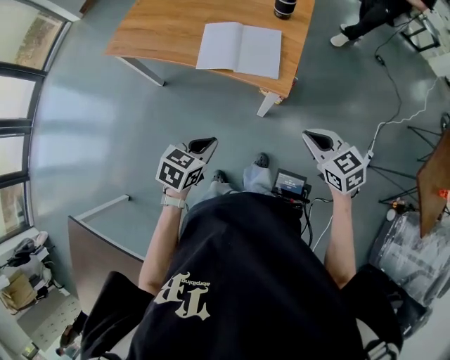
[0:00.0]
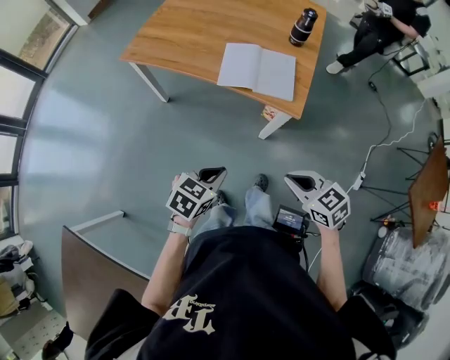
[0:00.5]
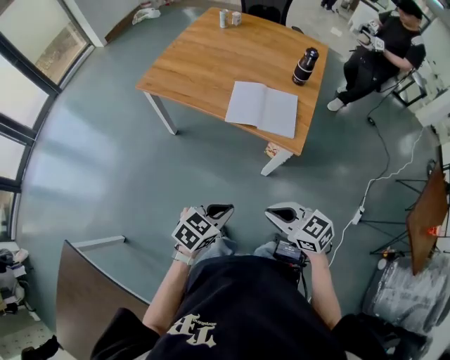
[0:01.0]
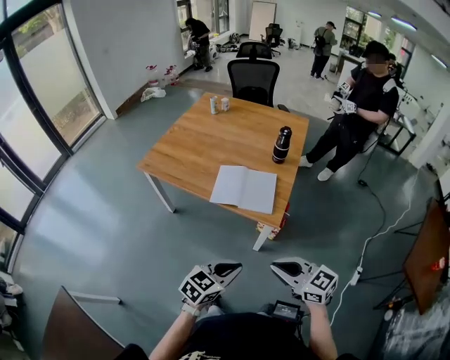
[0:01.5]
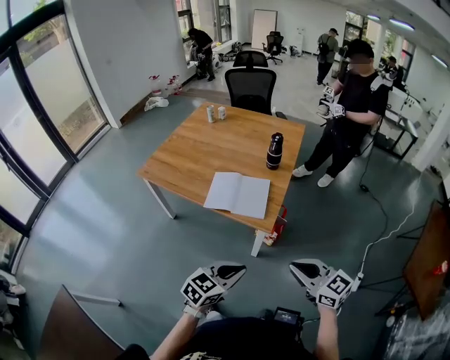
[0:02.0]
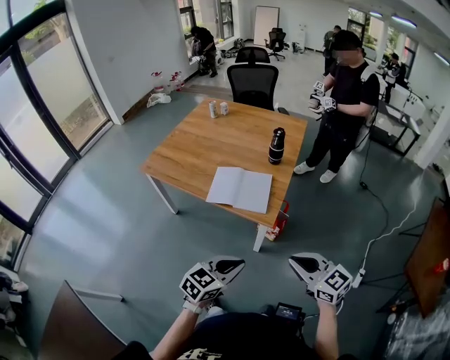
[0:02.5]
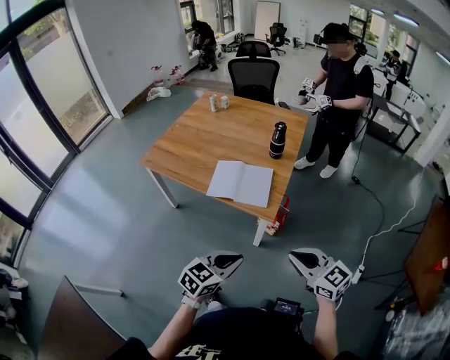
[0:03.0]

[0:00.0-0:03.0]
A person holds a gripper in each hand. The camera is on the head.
0.0 to 1.5 s: The left gripper moves upward, backward and to the right, some 15 cm, and turns by about 20 degrees, while the right gripper moves upward, to the left and backward, some 20 cm, and swivels roughly 30 degrees.
1.5 to 3.0 s: The right gripper heads to the right, covering roughly 10 cm. Meanwhile the left gripper travels to the right by some 5 cm.

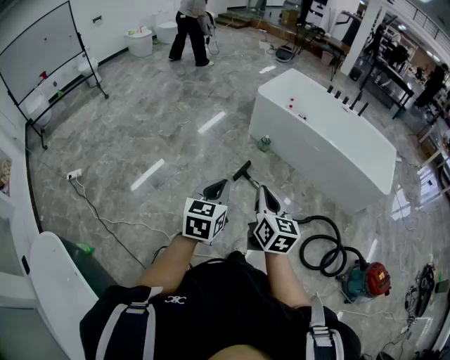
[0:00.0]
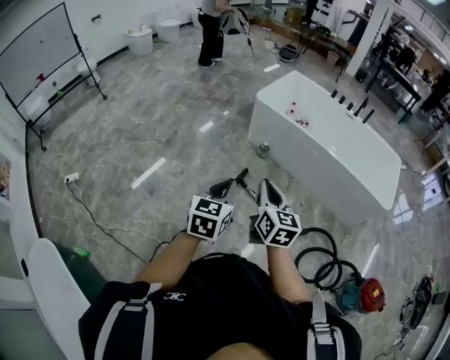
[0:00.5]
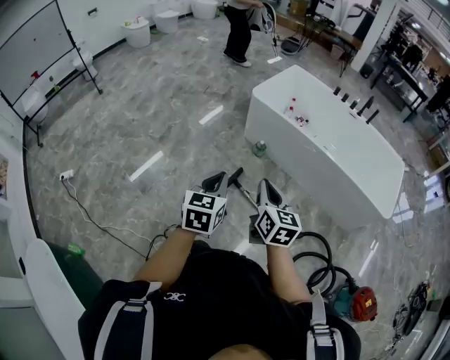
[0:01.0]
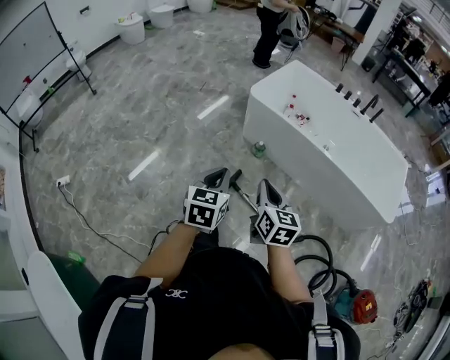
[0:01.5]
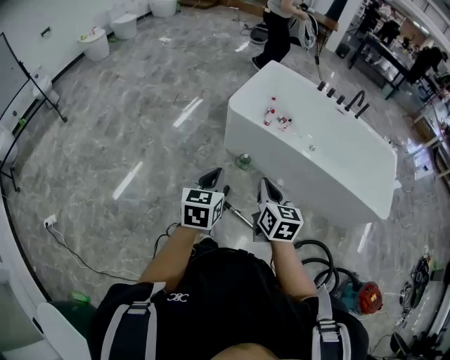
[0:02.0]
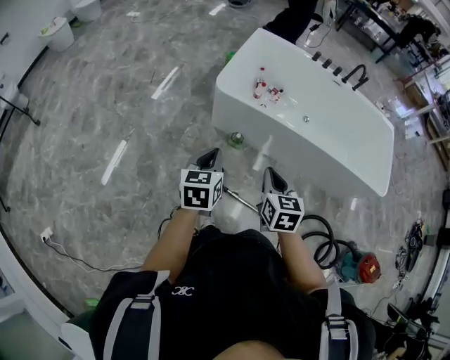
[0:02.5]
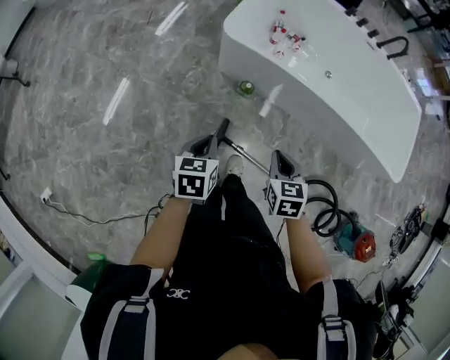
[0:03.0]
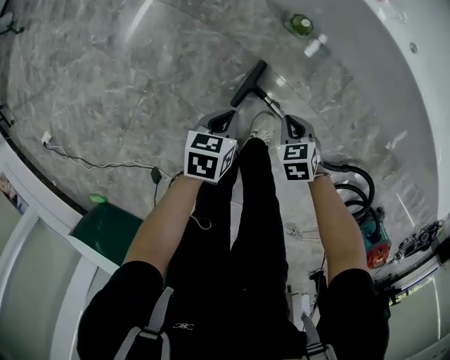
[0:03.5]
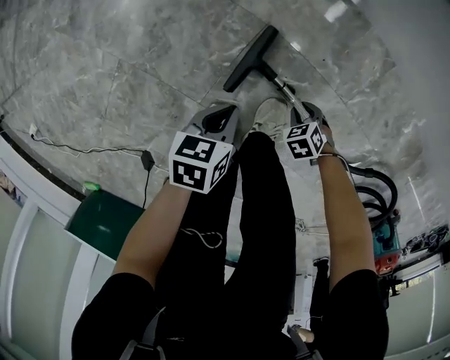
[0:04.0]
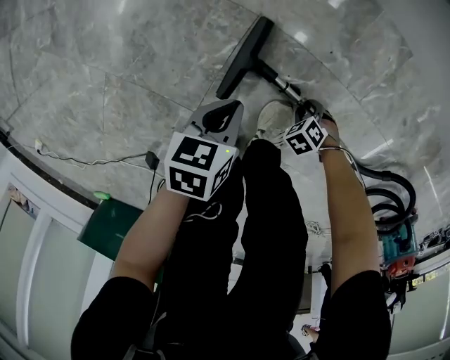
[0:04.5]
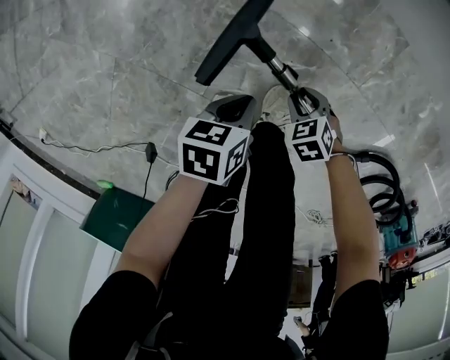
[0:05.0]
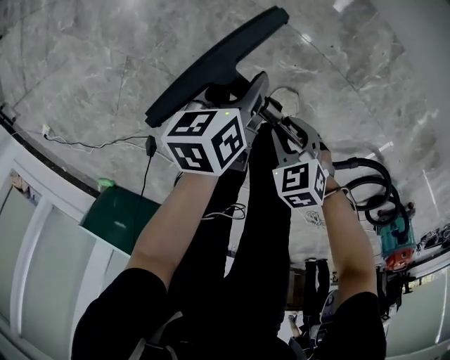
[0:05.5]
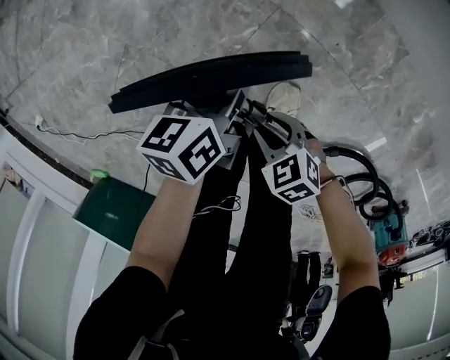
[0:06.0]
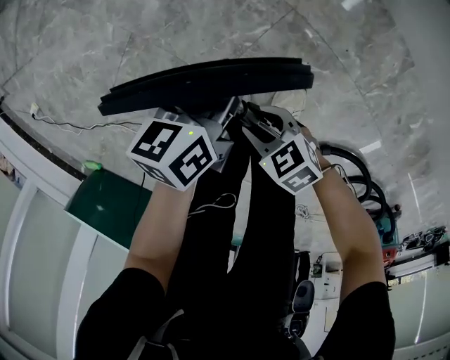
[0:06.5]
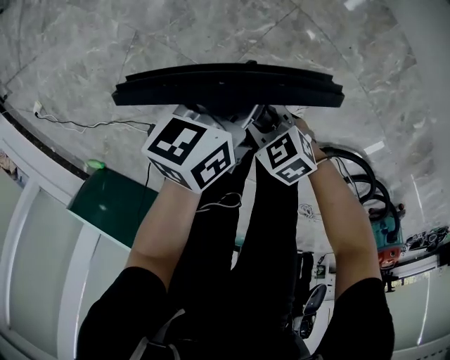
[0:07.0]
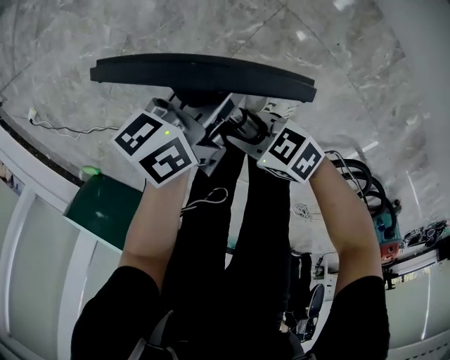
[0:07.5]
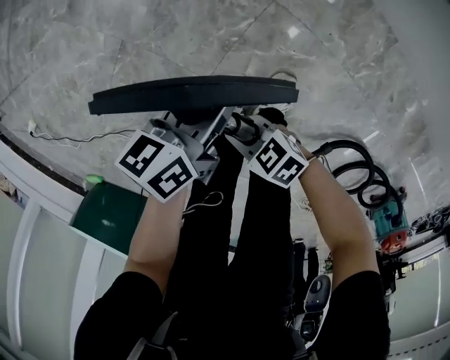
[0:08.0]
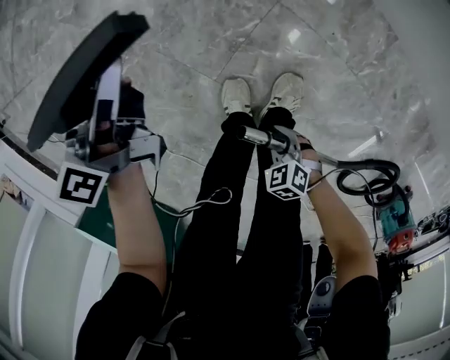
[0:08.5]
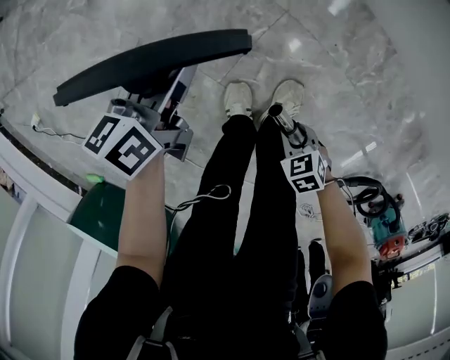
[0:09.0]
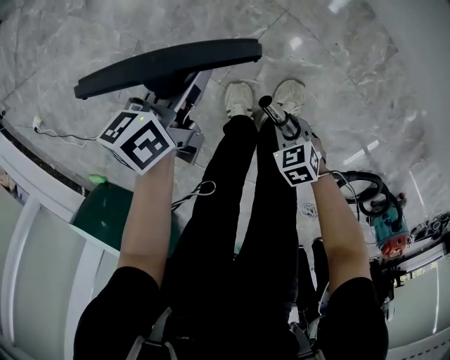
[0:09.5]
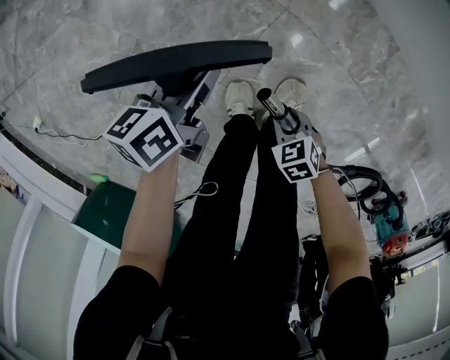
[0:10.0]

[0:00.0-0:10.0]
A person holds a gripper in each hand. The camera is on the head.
0.0 to 2.0 s: The pair of grippers is taken forward, approximately 50 cm.
2.0 to 4.0 s: The two grippers go about 80 cm downward. The left gripper tips its fingers downward by roughly 40 degrees; the right gripper angles its fingers downward, by approximately 60 degrees, and opens.
4.0 to 6.0 s: The left gripper moves approximately 10 cm, turns by some 30 degrees, and opens. The right gripper is displaced upward by about 20 cm, and turns by roughly 30 degrees.
6.0 to 8.0 s: The left gripper travels upward by approximately 5 cm. The right gripper moves about 10 cm, changes its angle by approximately 20 degrees, and closes its fingers.
8.0 to 10.0 s: The right gripper ends up about 10 cm from where it was, and tilts its fingers approximately 30 degrees downward; the left gripper travels upward and back again, about 10 cm each way.

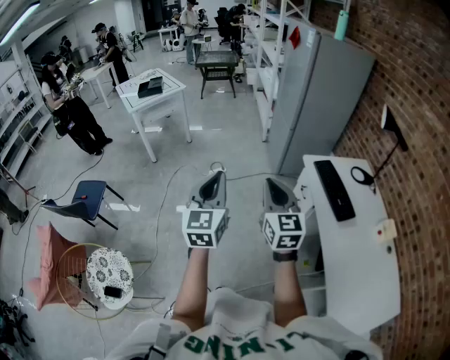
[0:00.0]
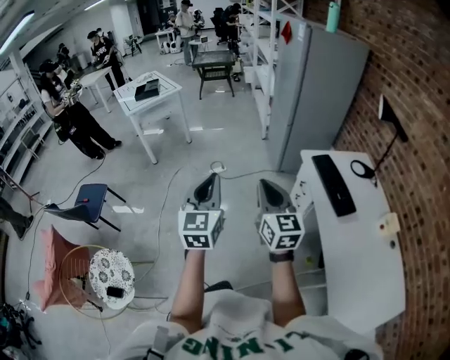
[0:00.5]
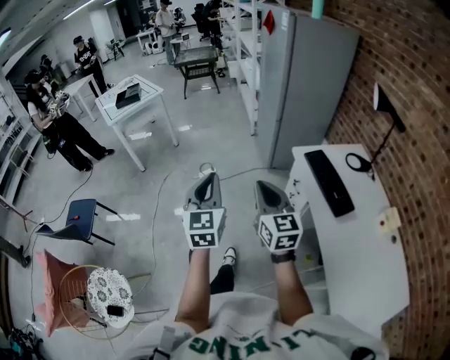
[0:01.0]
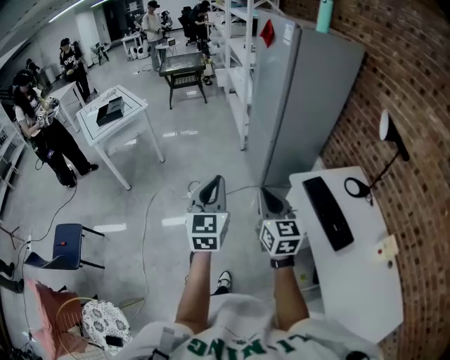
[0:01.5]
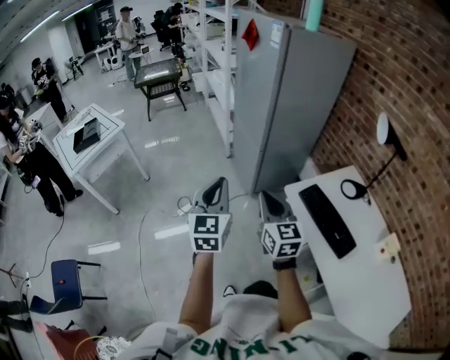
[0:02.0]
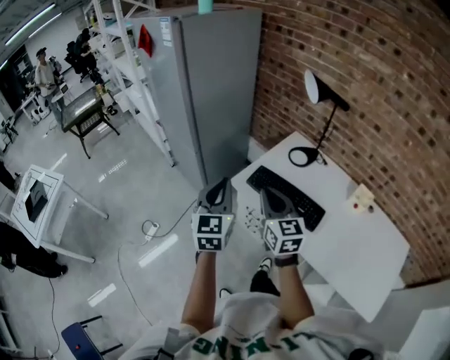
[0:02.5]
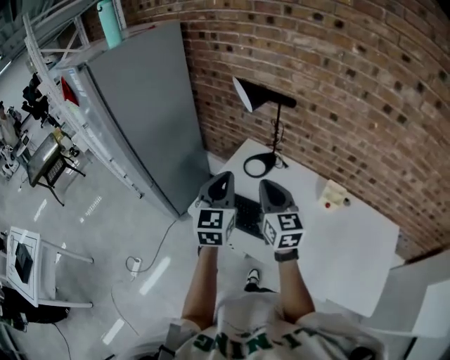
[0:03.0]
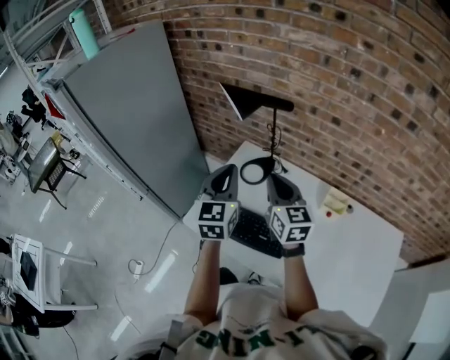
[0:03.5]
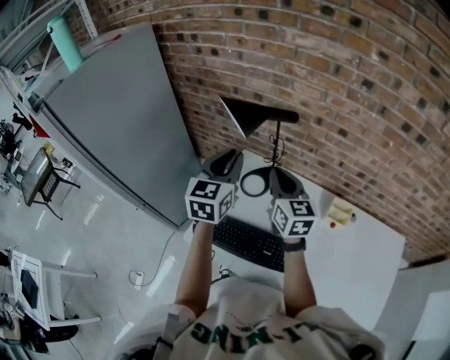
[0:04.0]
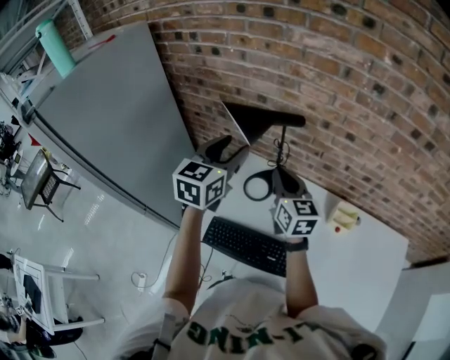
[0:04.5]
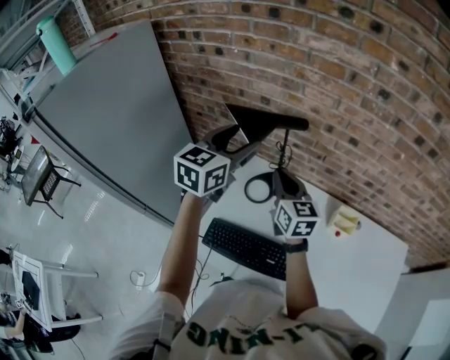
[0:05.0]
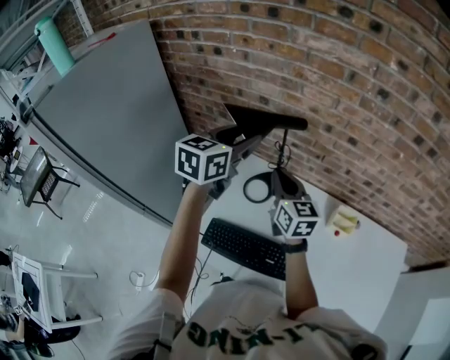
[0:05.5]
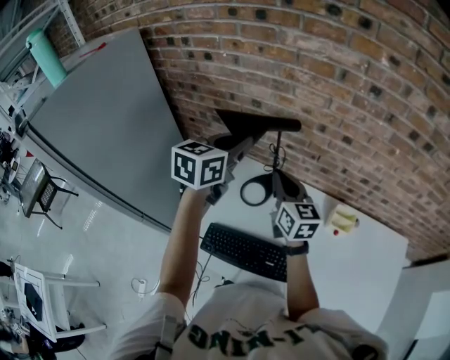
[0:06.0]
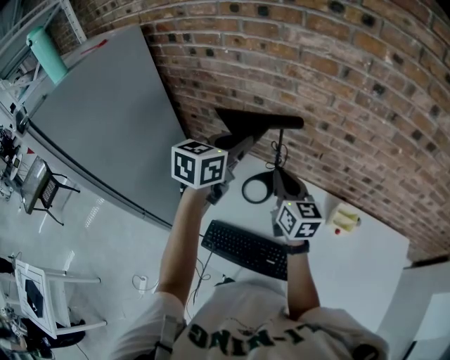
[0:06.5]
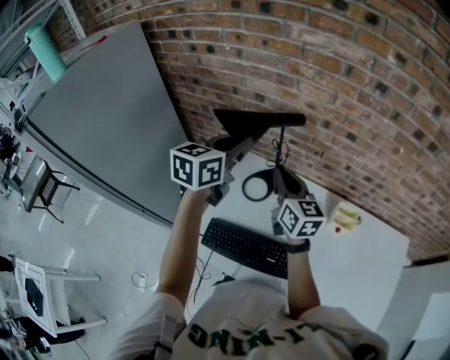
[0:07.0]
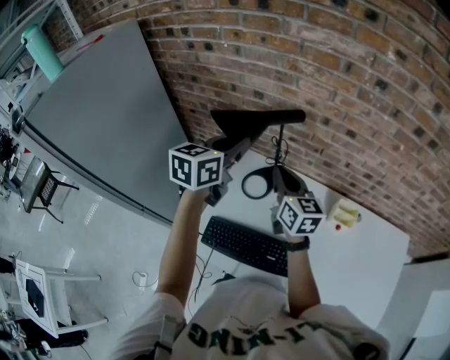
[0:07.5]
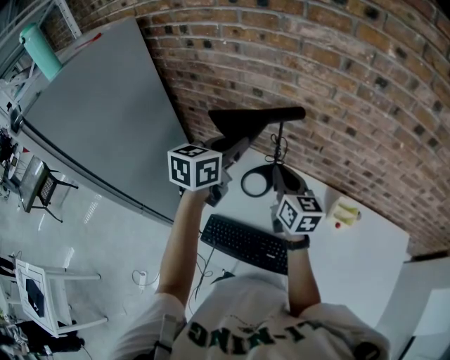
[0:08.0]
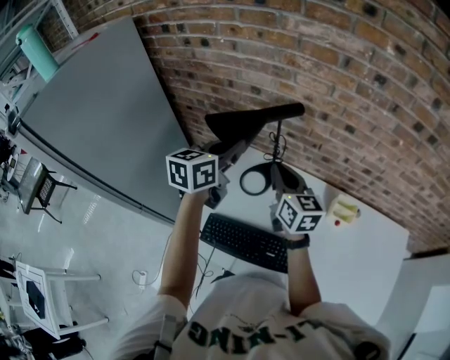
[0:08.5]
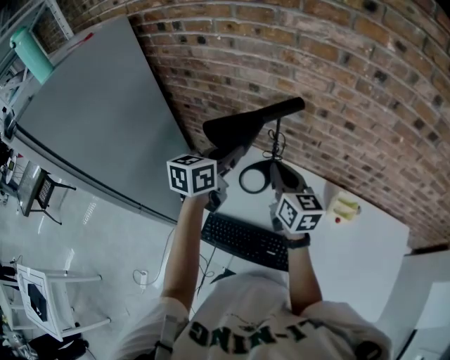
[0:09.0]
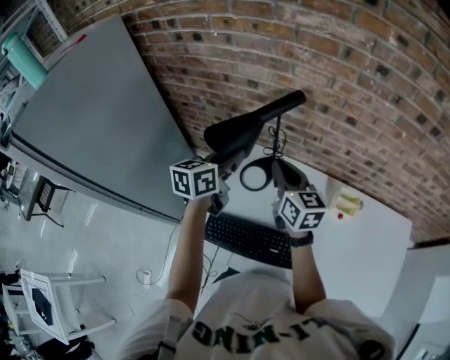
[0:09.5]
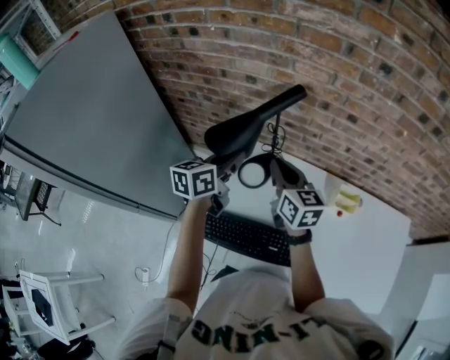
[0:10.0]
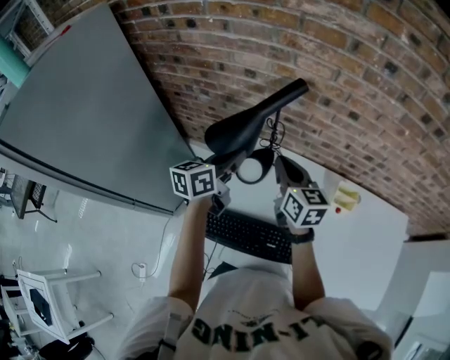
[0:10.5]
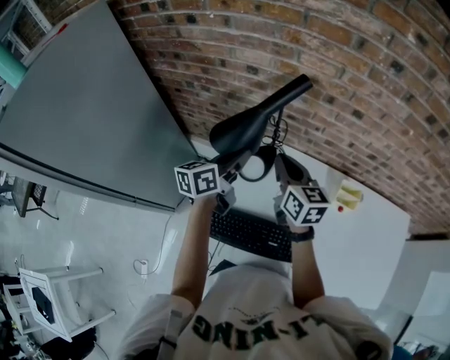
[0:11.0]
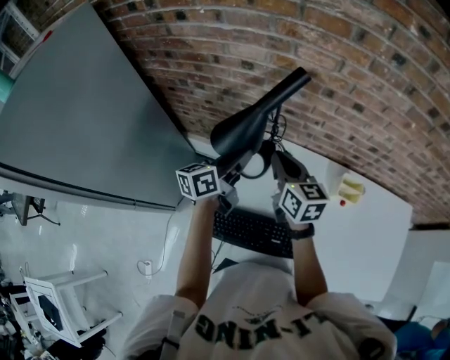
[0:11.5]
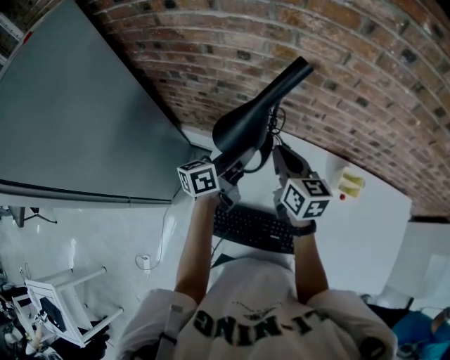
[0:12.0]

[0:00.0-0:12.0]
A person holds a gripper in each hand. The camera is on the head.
0.0 to 2.0 s: The grippers both shift forward by approximately 35 cm.
2.0 to 4.0 s: Both grippers are carried some 60 cm. The right gripper turns by roughly 40 degrees. The left gripper rotates some 50 degrees.
4.0 to 6.0 s: The right gripper heads forward, covering some 5 cm; the left gripper heads forward, covering about 10 cm, turns by some 20 degrees, and opens, then closes again.
6.0 to 8.0 s: There are only small adjustments of the grippers.
8.0 to 10.0 s: The left gripper is displaced downward by approximately 10 cm.
10.0 to 12.0 s: The left gripper heads downward, covering about 5 cm, and changes its angle by about 20 degrees; the right gripper changes place by approximately 5 cm.

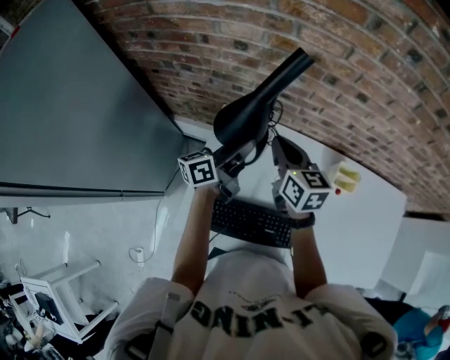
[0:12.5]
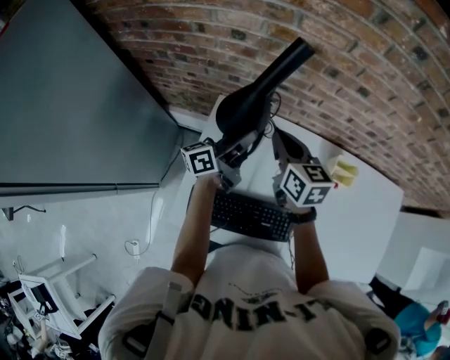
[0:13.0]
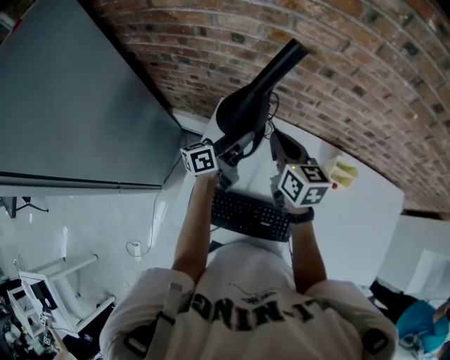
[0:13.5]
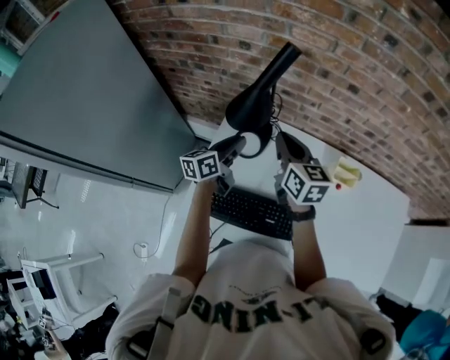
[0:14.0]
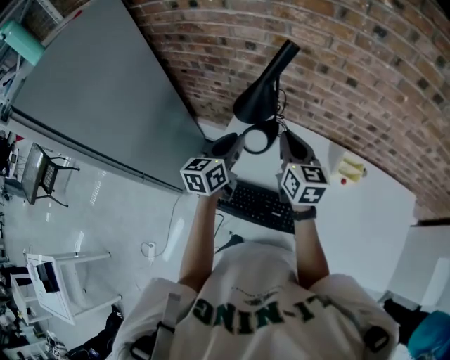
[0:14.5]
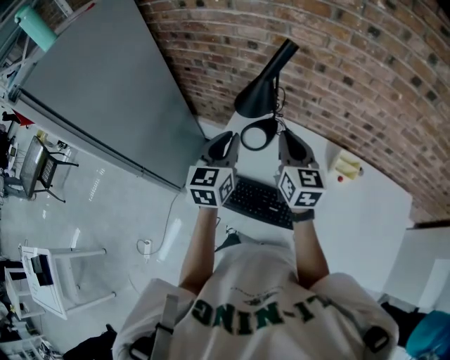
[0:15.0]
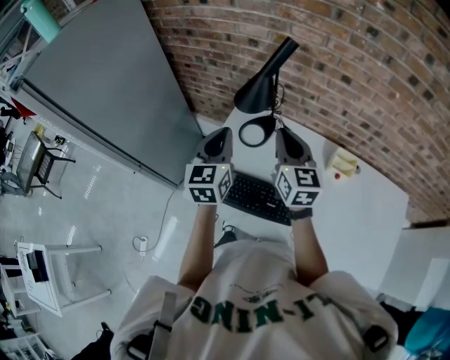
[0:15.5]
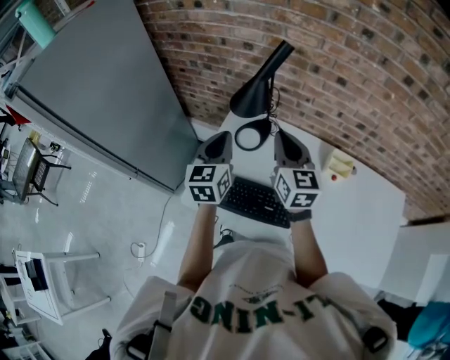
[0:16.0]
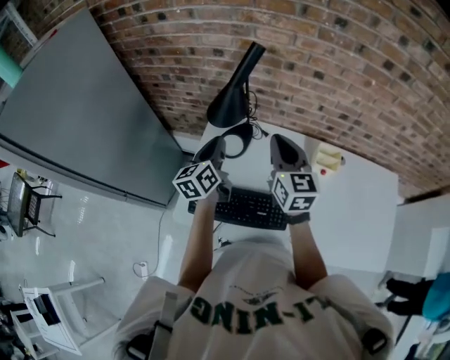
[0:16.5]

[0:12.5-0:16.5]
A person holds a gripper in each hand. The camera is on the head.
12.5 to 14.5 s: Both grippers move backward, approximately 10 cm. The left gripper swivels about 40 degrees.
